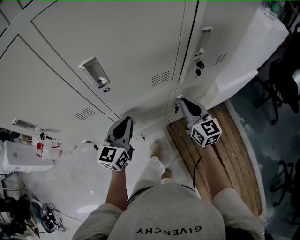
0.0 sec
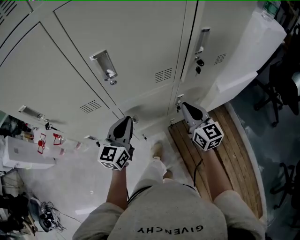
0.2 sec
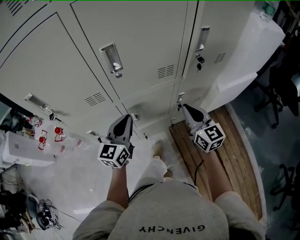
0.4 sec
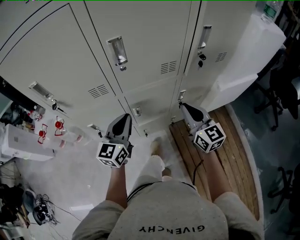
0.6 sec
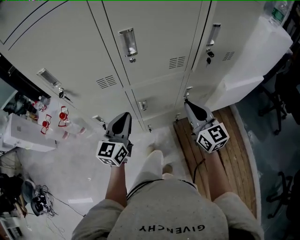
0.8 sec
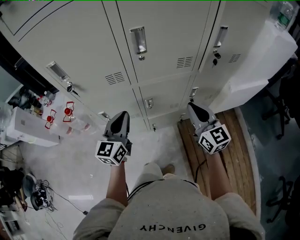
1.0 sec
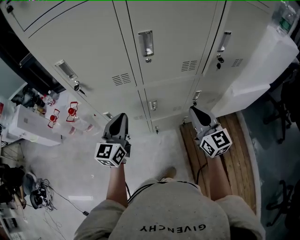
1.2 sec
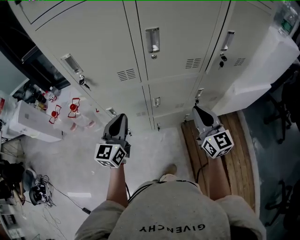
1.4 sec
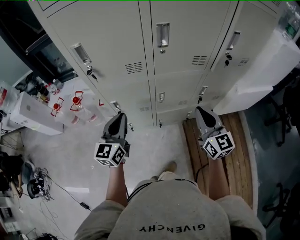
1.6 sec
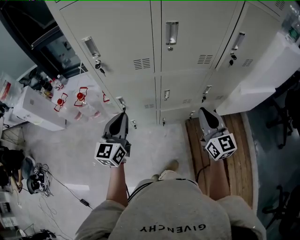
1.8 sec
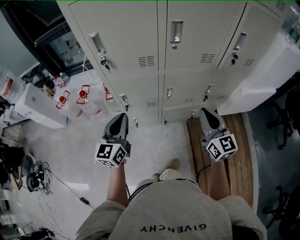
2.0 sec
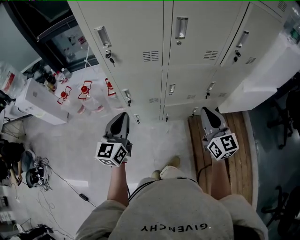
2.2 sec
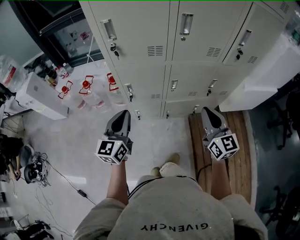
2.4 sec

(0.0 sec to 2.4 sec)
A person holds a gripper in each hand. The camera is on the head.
0.0 sec - 1.2 sec: The right gripper moves backward, to the left and upward, about 15 cm. The left gripper travels to the left and backward by roughly 20 cm.
1.2 sec - 2.4 sec: The grippers both shift backward and to the left by about 15 cm.

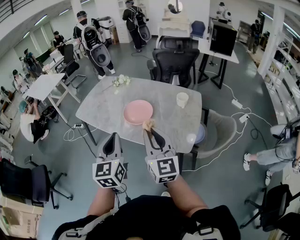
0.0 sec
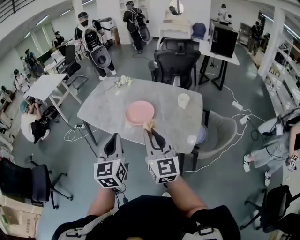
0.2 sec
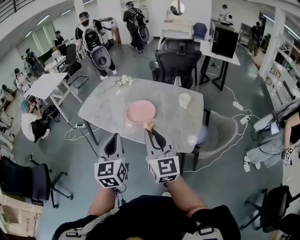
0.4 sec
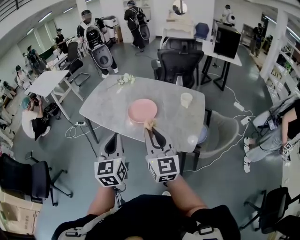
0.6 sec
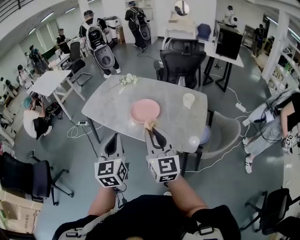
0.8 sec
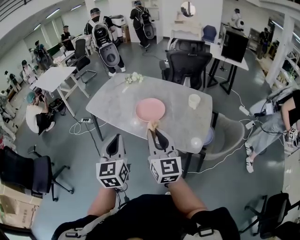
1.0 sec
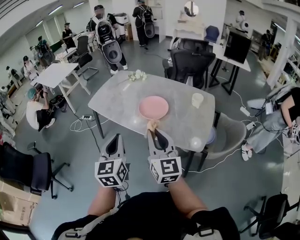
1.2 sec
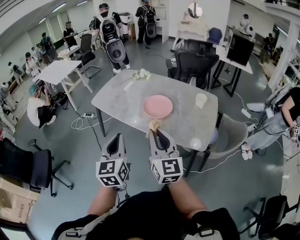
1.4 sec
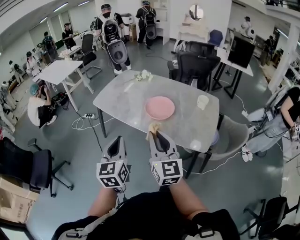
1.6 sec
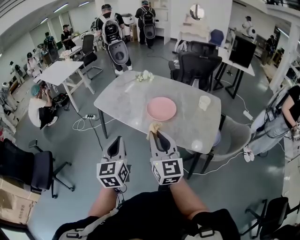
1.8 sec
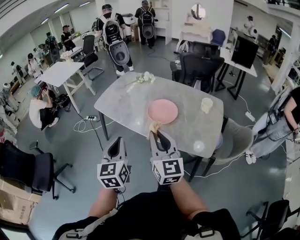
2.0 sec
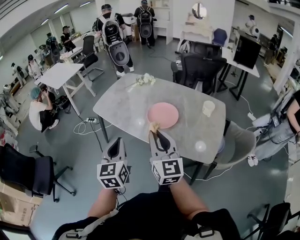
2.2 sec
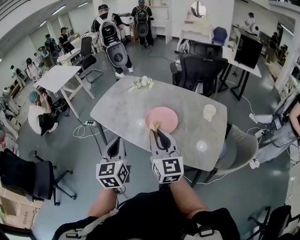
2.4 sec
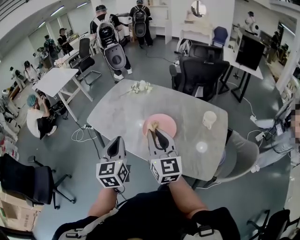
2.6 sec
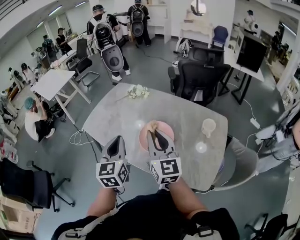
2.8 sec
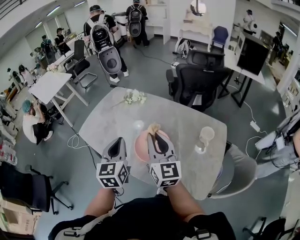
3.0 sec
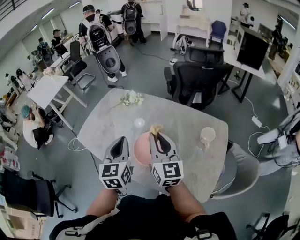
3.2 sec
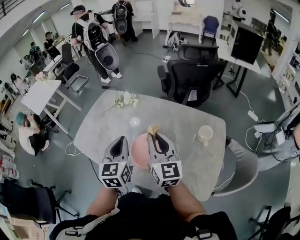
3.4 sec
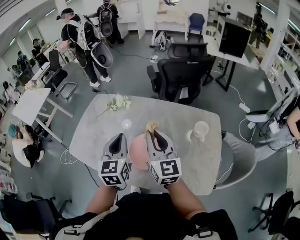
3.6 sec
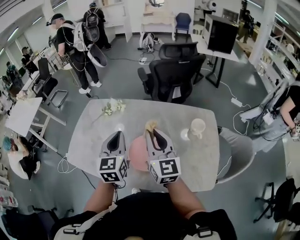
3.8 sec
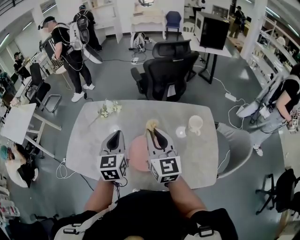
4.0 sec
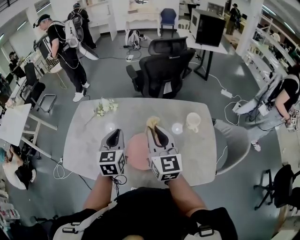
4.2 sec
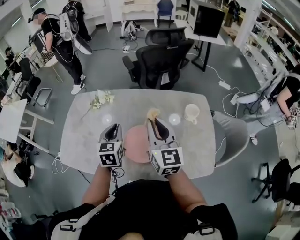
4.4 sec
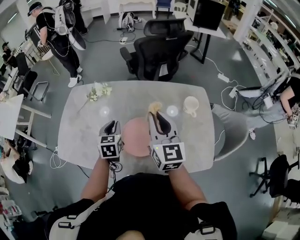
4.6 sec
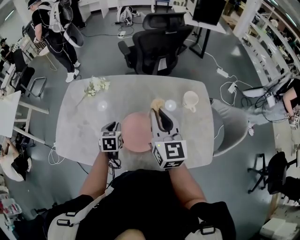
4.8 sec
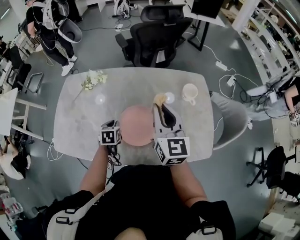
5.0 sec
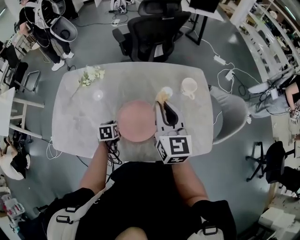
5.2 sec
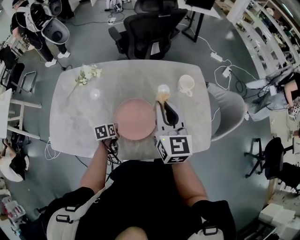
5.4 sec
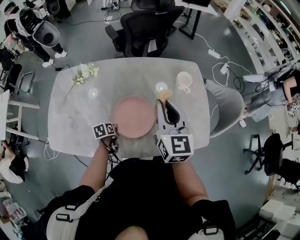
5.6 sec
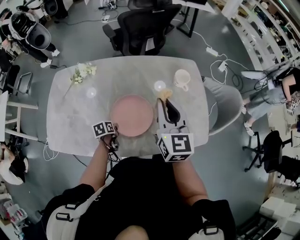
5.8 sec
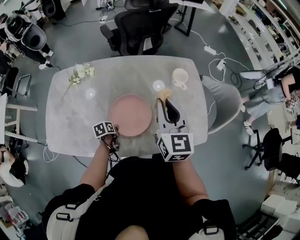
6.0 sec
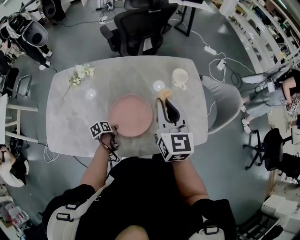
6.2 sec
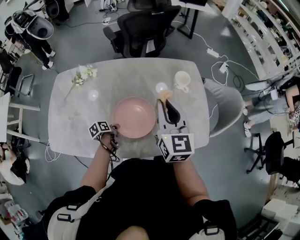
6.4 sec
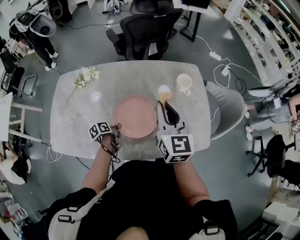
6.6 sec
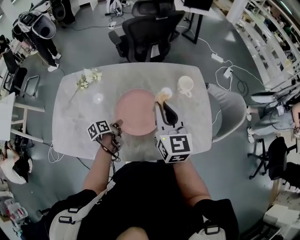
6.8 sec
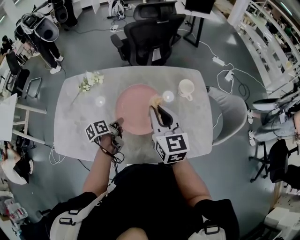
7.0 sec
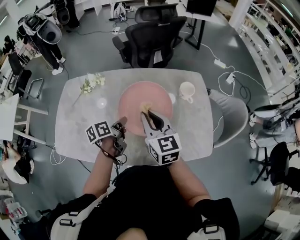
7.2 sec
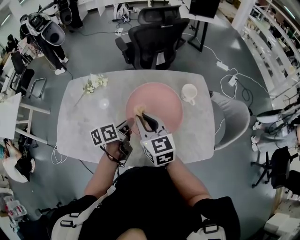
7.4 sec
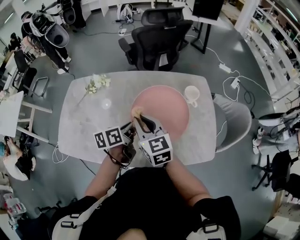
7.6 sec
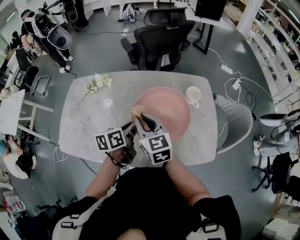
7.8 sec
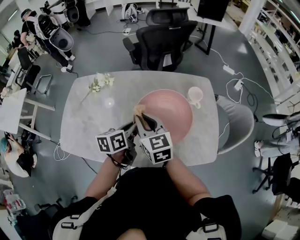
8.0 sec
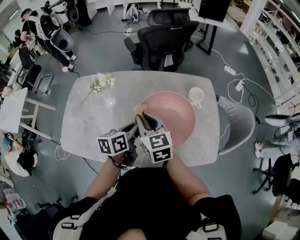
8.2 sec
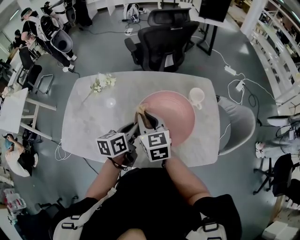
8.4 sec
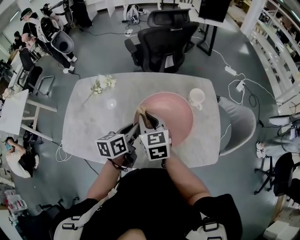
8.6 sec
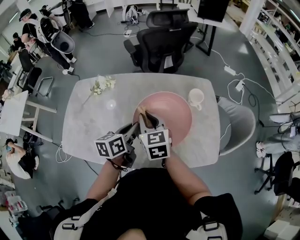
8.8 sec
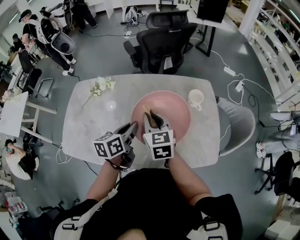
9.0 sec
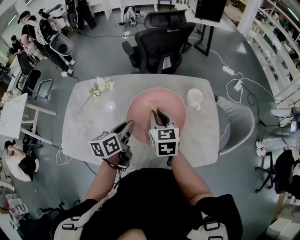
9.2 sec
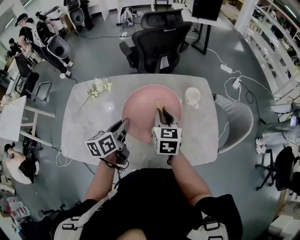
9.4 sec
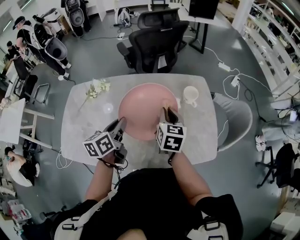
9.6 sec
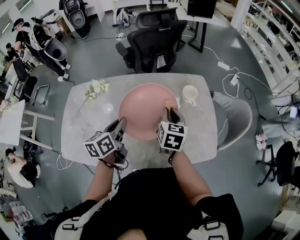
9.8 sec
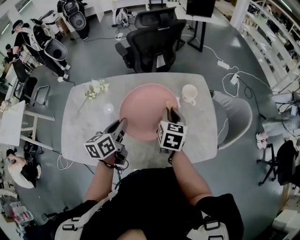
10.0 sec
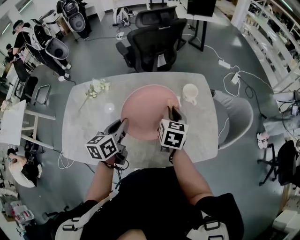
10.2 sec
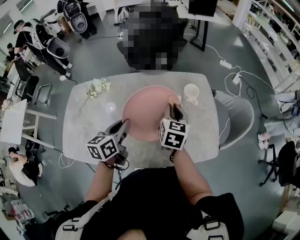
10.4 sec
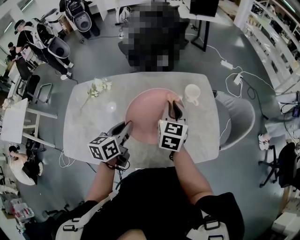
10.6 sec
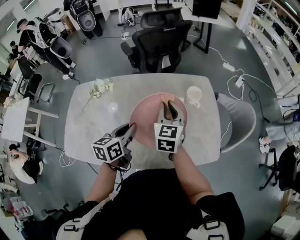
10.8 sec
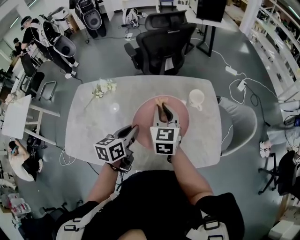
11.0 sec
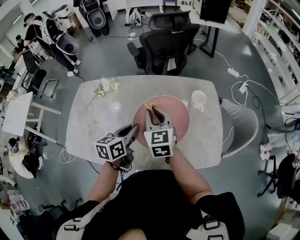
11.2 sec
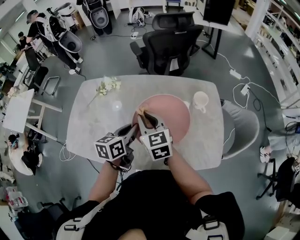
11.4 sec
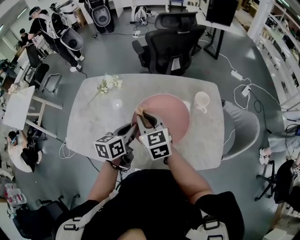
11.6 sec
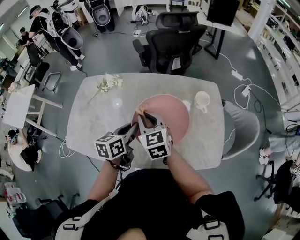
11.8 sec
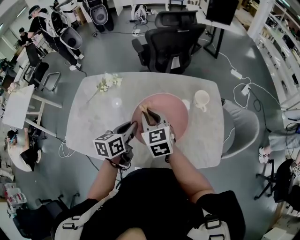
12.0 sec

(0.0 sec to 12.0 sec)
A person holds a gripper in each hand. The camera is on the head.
0.0 sec - 1.6 sec: The two grippers go some 15 cm to the left.
1.6 sec - 3.0 sec: The left gripper moves forward and to the right, about 35 cm; the right gripper shifts roughly 30 cm forward.
3.0 sec - 4.4 sec: The left gripper heads forward and downward, covering about 20 cm, and rotates about 30 degrees; the right gripper travels forward by roughly 10 cm, and swivels about 20 degrees.
4.4 sec - 6.0 sec: The right gripper goes about 5 cm to the right. Meanwhile the left gripper heads downward, covering about 30 cm, and tilts its fingers some 30 degrees downward.
6.0 sec - 7.6 sec: The left gripper travels upward by about 25 cm, and tilts its fingers approximately 30 degrees upward; the right gripper goes some 10 cm to the left, and changes its angle by approximately 30 degrees.
7.6 sec - 9.0 sec: The grippers stay close to where they were, moving slightly.
9.0 sec - 10.4 sec: The right gripper heads to the right, covering about 10 cm, and rotates some 30 degrees.
10.4 sec - 12.0 sec: The right gripper shifts about 15 cm to the left, and changes its angle by roughly 40 degrees.

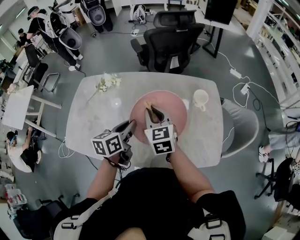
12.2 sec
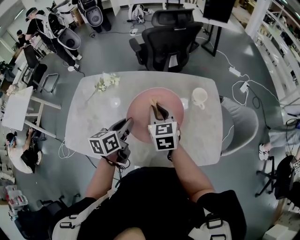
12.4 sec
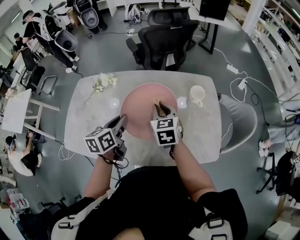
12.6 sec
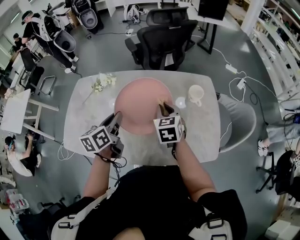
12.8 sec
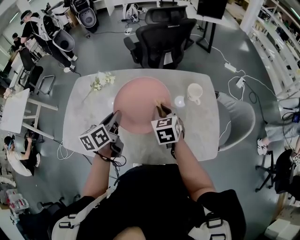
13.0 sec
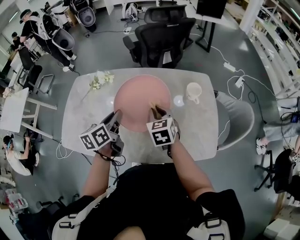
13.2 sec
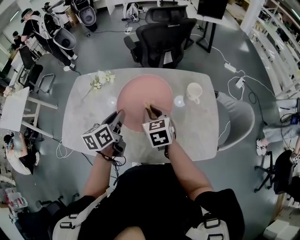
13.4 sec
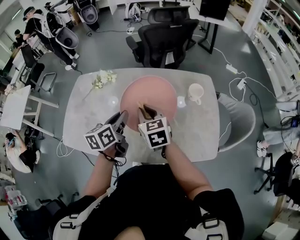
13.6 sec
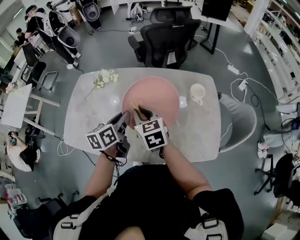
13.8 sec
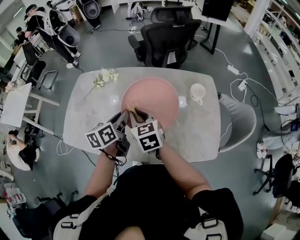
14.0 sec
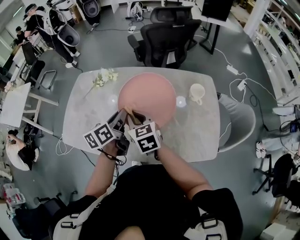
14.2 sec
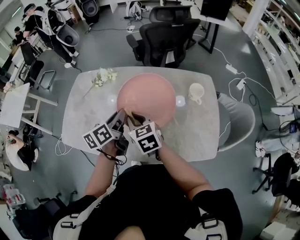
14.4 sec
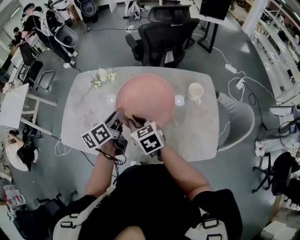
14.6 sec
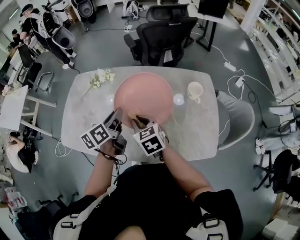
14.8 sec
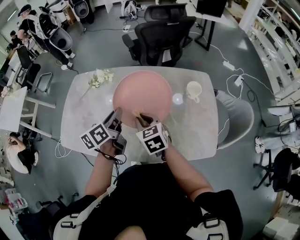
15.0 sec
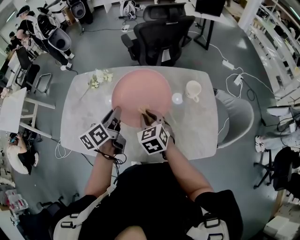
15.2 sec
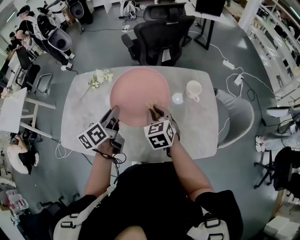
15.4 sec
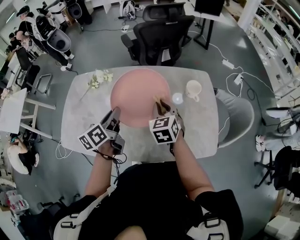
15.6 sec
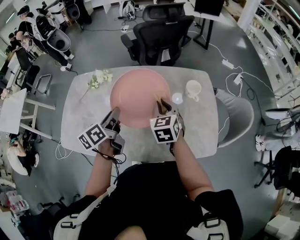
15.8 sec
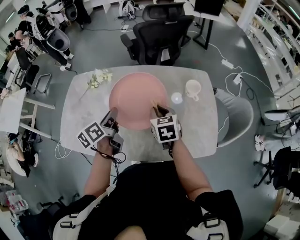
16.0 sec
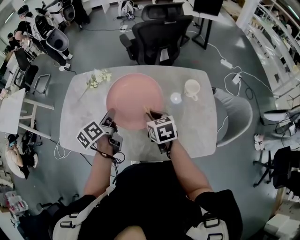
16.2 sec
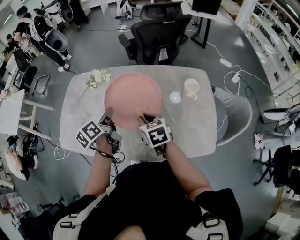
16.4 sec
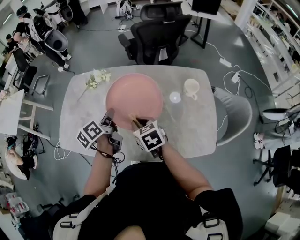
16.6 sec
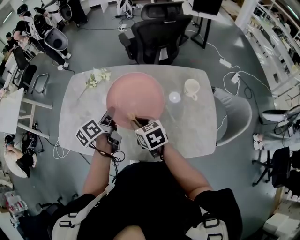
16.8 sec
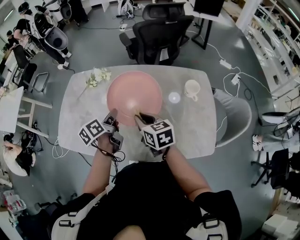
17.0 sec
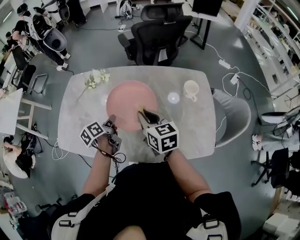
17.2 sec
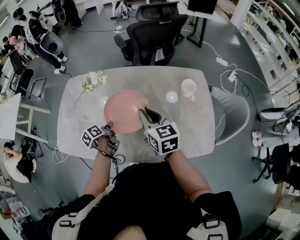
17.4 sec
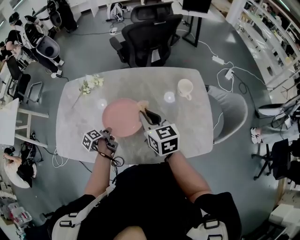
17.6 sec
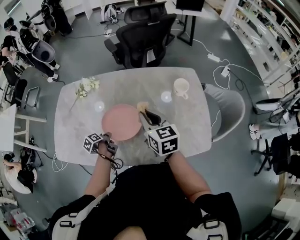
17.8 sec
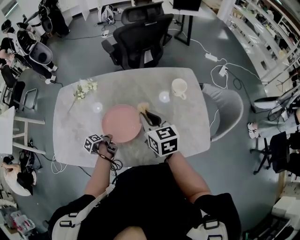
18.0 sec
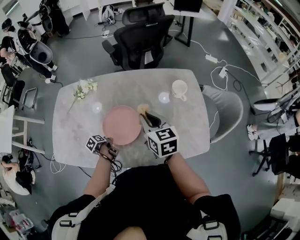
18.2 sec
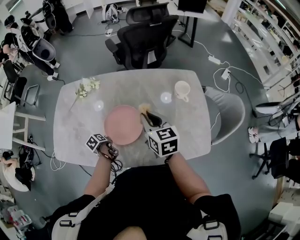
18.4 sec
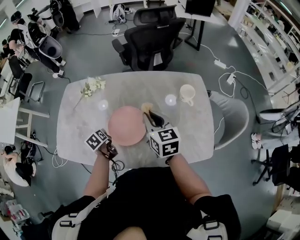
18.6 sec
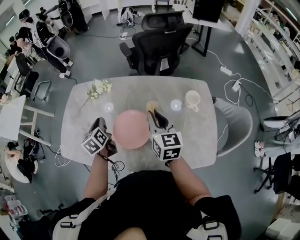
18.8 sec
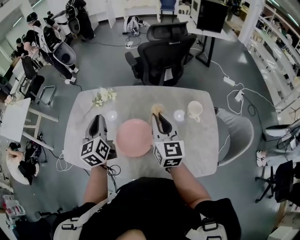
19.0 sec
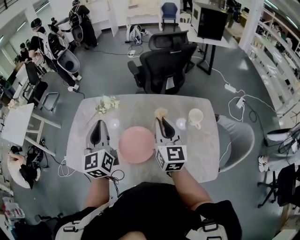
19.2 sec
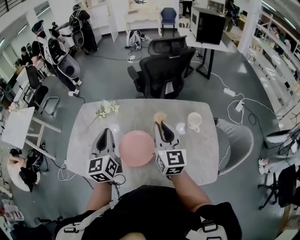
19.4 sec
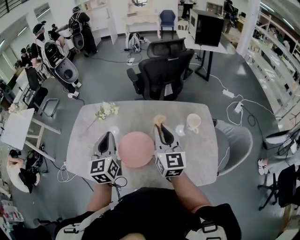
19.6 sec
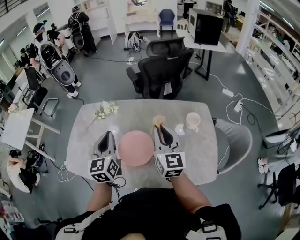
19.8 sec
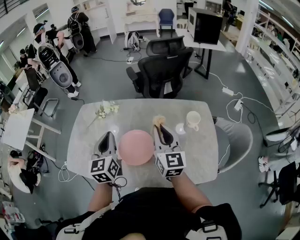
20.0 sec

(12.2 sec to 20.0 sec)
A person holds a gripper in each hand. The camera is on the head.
12.2 sec - 13.8 sec: The right gripper travels to the right and back again, some 5 cm each way.
13.8 sec - 15.4 sec: The right gripper goes some 5 cm to the right.
15.4 sec - 16.8 sec: The right gripper shifts about 10 cm to the left, and turns by some 30 degrees.
16.8 sec - 18.4 sec: The right gripper heads to the right and upward, covering some 10 cm, and changes its angle by some 20 degrees, while the left gripper moves downward, some 25 cm, and angles its fingers downward, by about 40 degrees.
18.4 sec - 20.0 sec: The left gripper moves upward, approximately 35 cm, and angles its fingers upward, by approximately 50 degrees. Meanwhile the right gripper heads upward, covering some 10 cm, and rotates some 30 degrees.

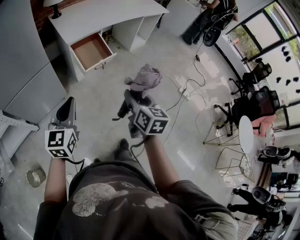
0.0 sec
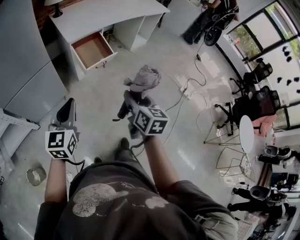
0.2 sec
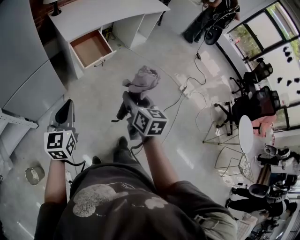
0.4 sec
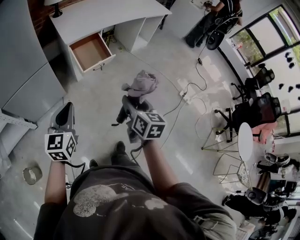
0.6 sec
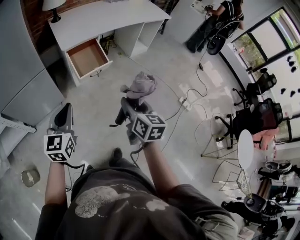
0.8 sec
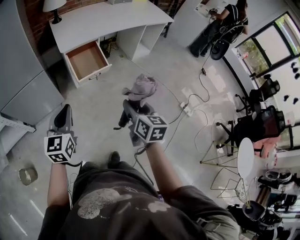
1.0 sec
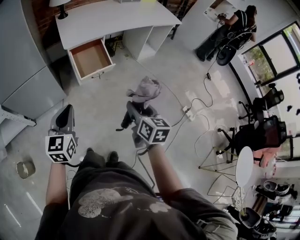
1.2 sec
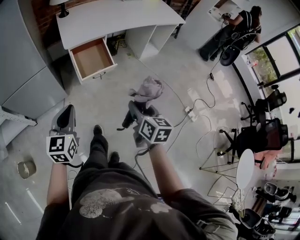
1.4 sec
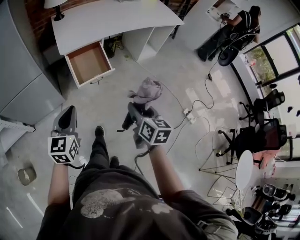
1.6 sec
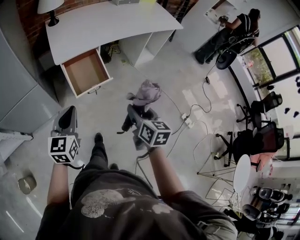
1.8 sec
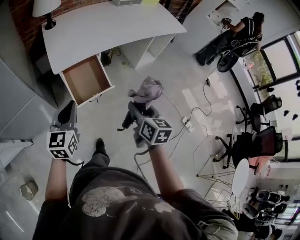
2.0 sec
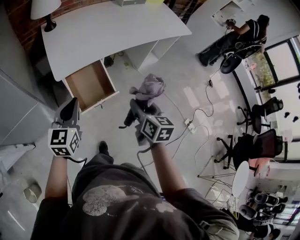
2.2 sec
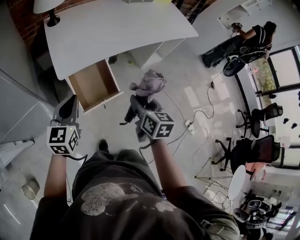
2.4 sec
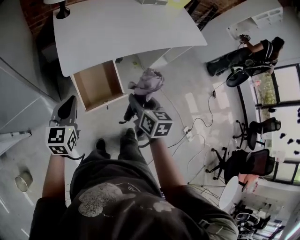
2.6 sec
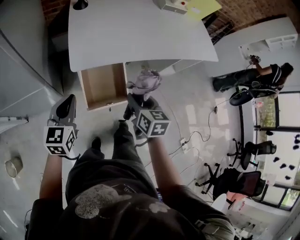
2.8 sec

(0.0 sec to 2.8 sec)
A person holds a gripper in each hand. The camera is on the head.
0.0 sec - 1.4 sec: Both grippers travel together to the right and forward, roughly 15 cm.
1.4 sec - 2.8 sec: Both grippers travel together forward, some 35 cm. The right gripper changes its angle by approximately 20 degrees.
